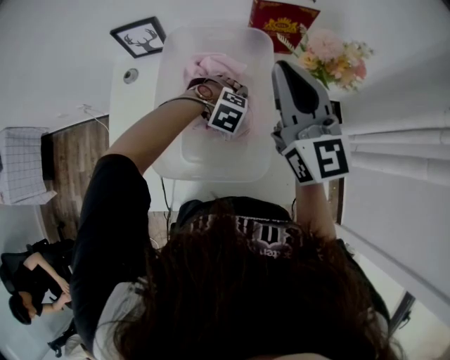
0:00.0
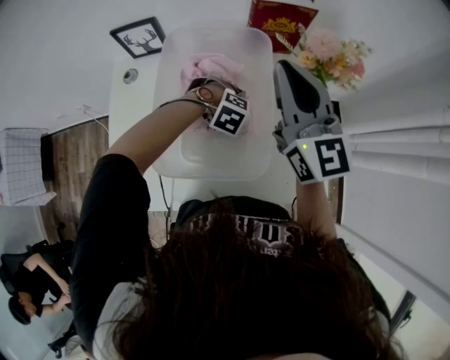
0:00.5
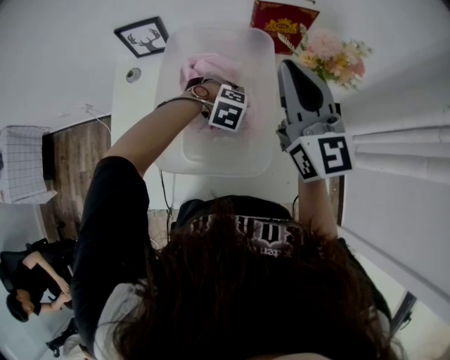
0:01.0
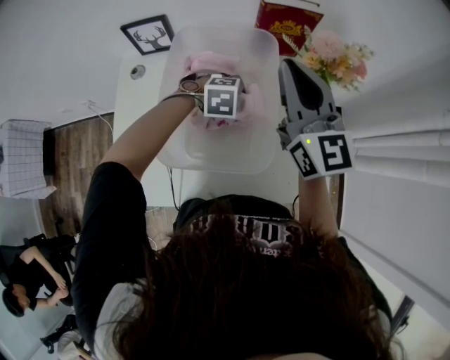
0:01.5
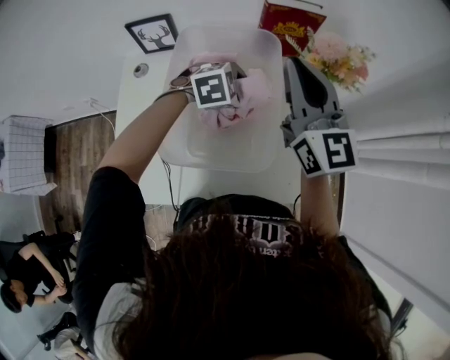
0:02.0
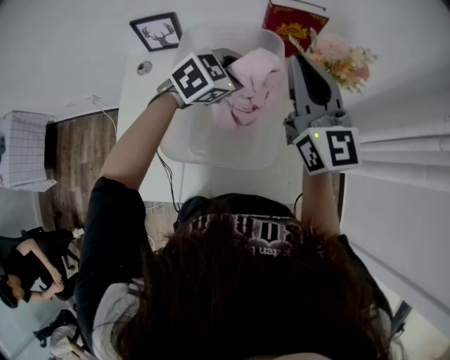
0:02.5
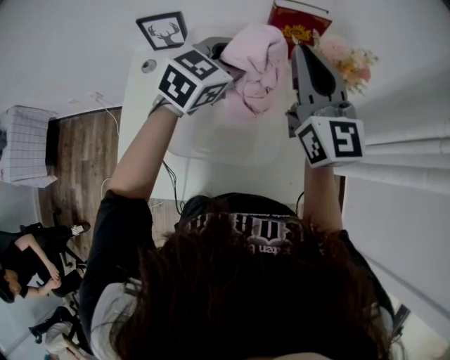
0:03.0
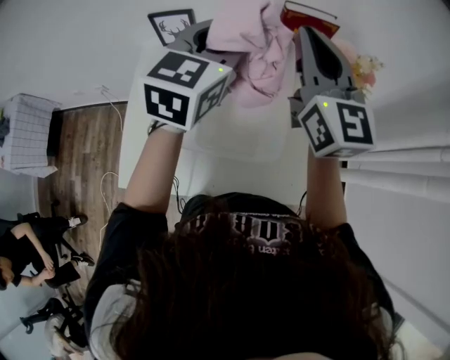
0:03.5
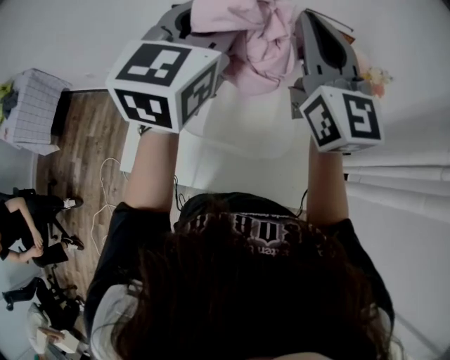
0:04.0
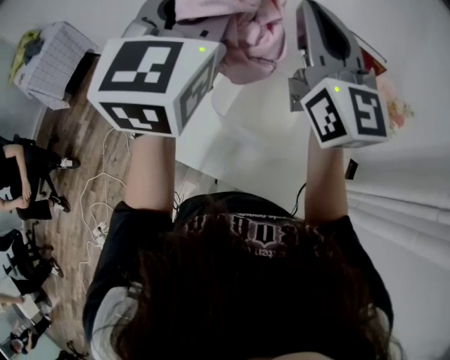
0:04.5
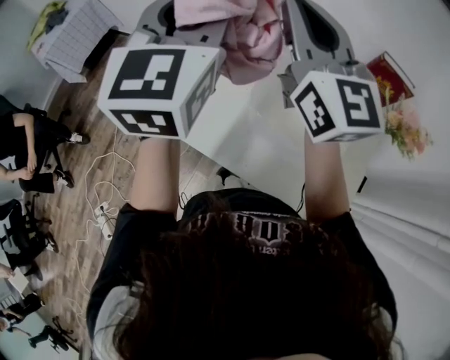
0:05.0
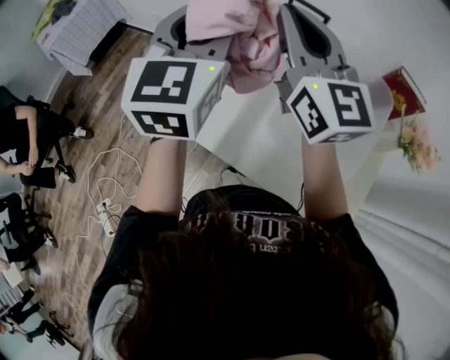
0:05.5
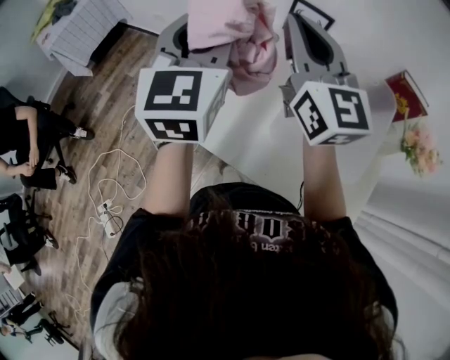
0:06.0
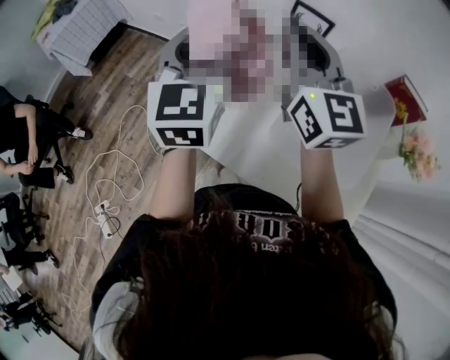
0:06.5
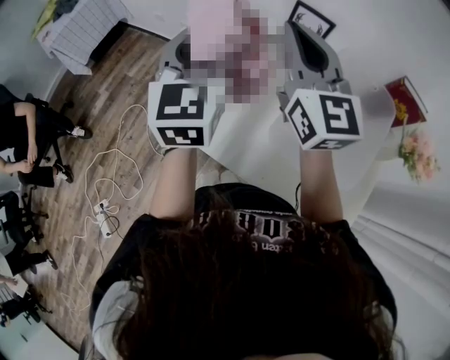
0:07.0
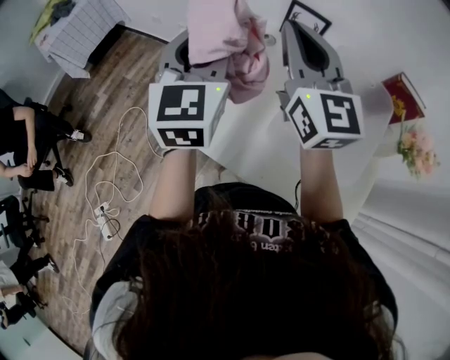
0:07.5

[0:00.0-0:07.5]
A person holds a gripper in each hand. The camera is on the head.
0:00.0 to 0:02.0: The left gripper goes about 10 cm upward, changes its angle by some 40 degrees, and closes.
0:02.0 to 0:04.0: The left gripper moves upward, some 35 cm, and tilts its fingers approximately 60 degrees upward; the right gripper heads upward, covering about 15 cm.
0:04.0 to 0:05.5: The right gripper shifts by roughly 30 cm, and turns by about 30 degrees, while the left gripper ends up roughly 25 cm from where it was, and changes its angle by about 30 degrees.
0:05.5 to 0:07.5: The left gripper shifts approximately 5 cm downward.

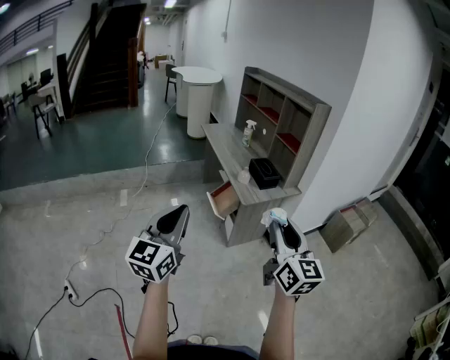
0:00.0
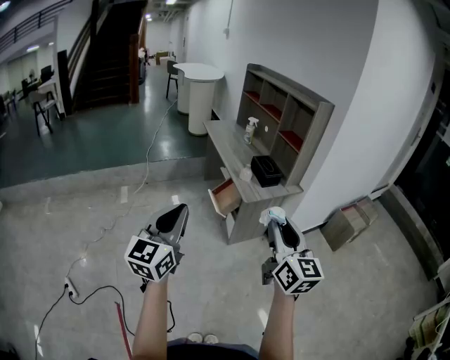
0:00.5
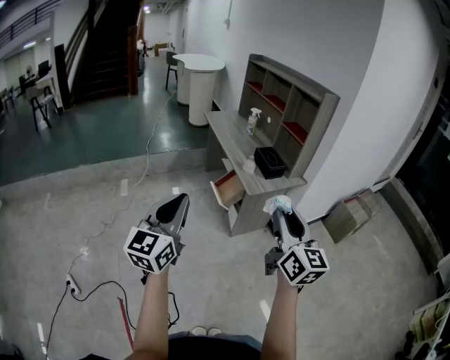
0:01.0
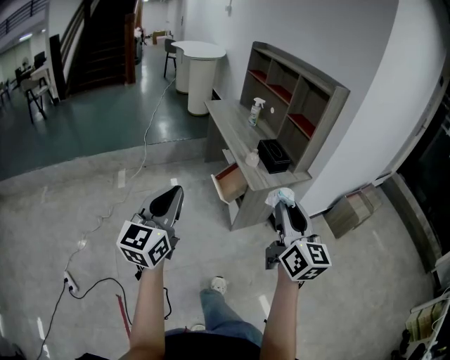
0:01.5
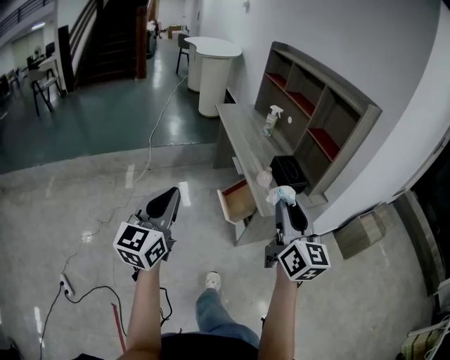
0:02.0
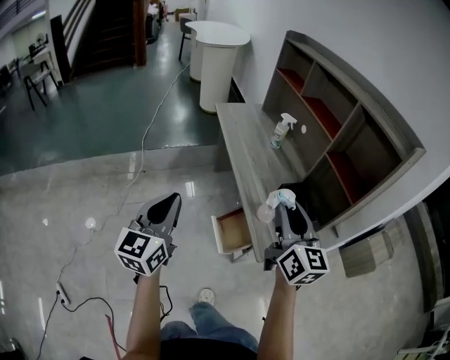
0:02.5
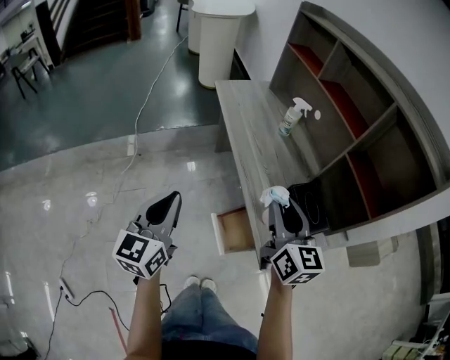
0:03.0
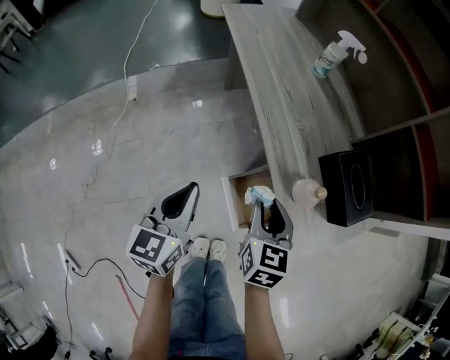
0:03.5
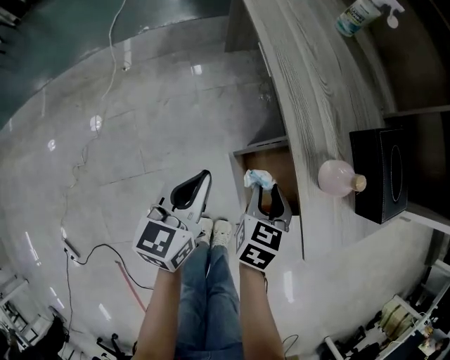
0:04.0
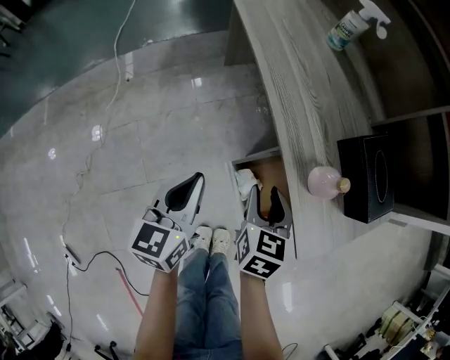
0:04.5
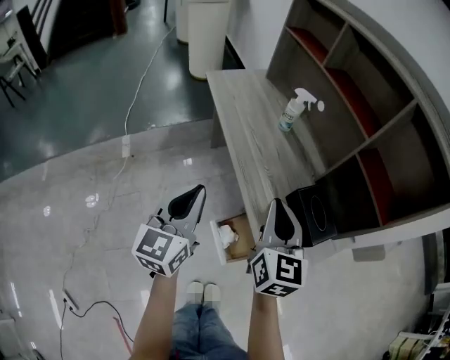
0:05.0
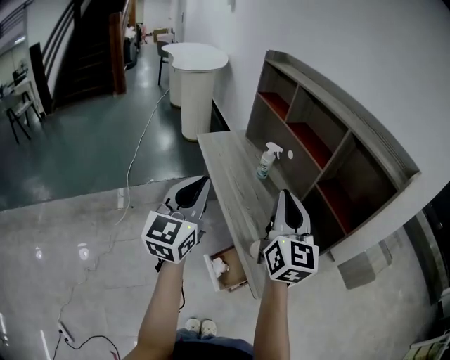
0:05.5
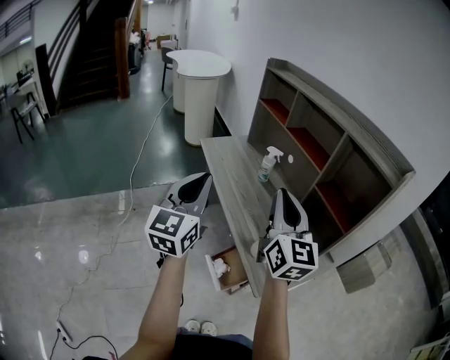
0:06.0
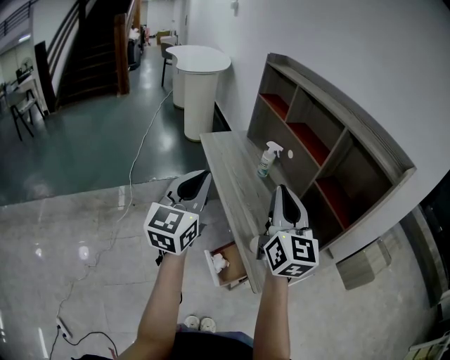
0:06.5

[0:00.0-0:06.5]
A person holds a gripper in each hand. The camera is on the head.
0:00.0 to 0:02.0: The left gripper is displaced forward and to the left by roughly 25 cm; the right gripper travels forward by roughly 25 cm.
0:02.0 to 0:04.5: The left gripper moves forward and downward, approximately 50 cm, and turns by some 30 degrees. The right gripper moves downward and forward, approximately 60 cm, and tips its fingers downward by some 50 degrees.
0:04.5 to 0:06.5: Both grippers move upward, roughly 50 cm. The left gripper turns by approximately 30 degrees; the right gripper points its fingers some 50 degrees further upward, and closes up.

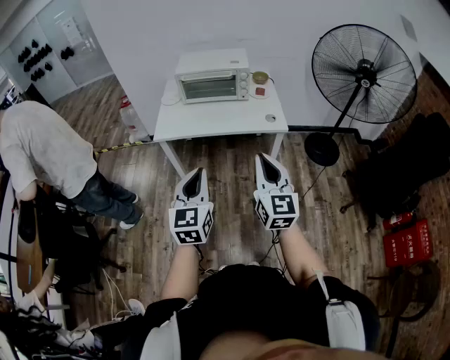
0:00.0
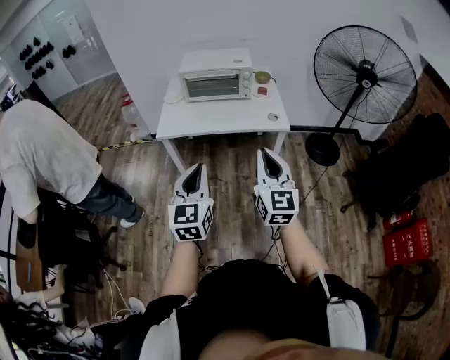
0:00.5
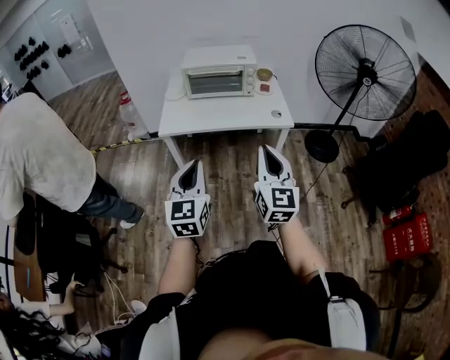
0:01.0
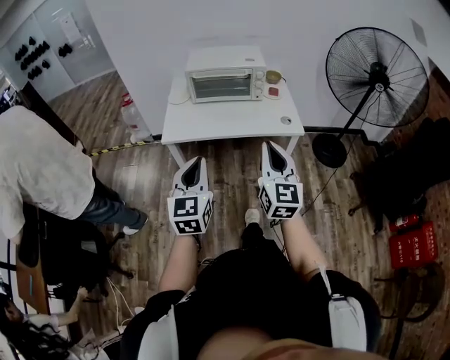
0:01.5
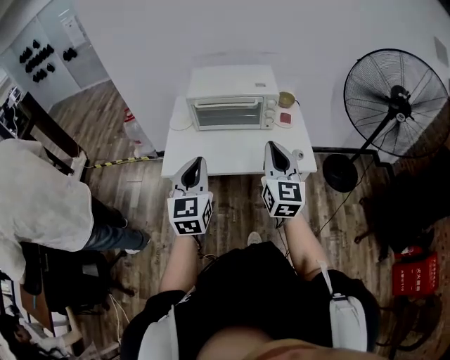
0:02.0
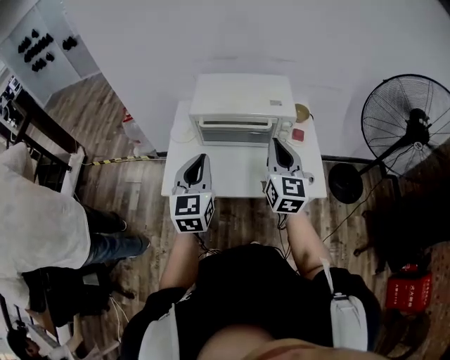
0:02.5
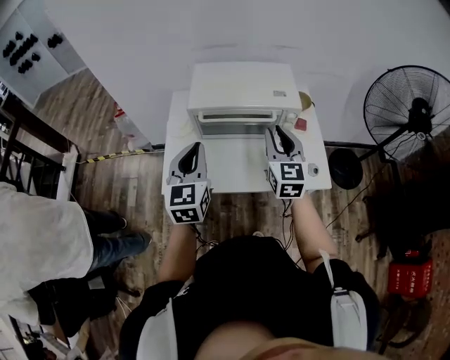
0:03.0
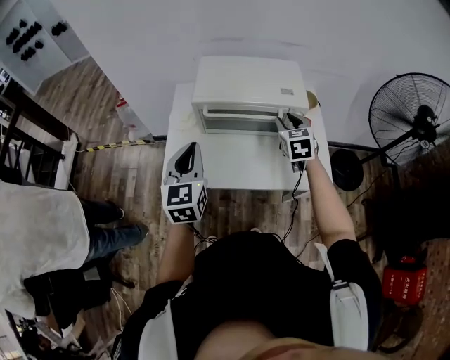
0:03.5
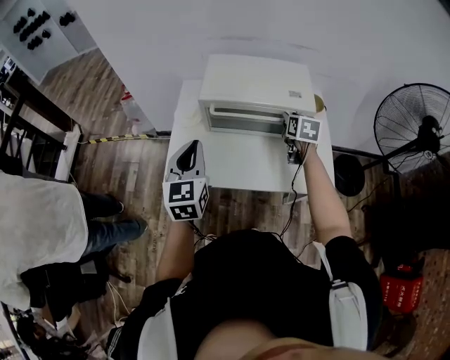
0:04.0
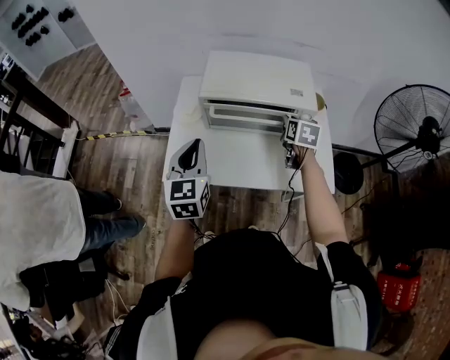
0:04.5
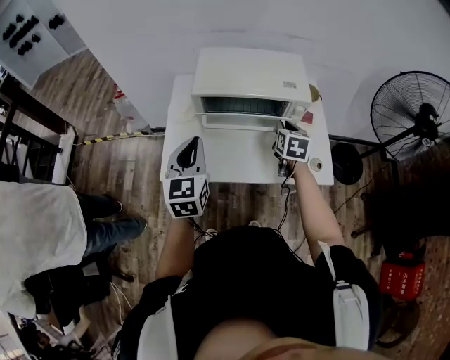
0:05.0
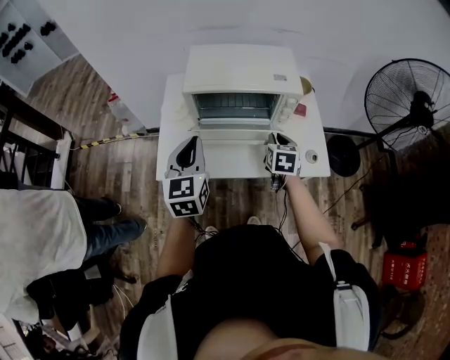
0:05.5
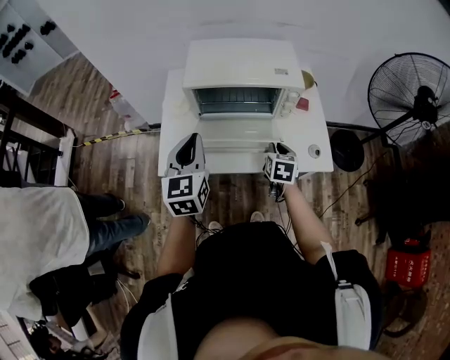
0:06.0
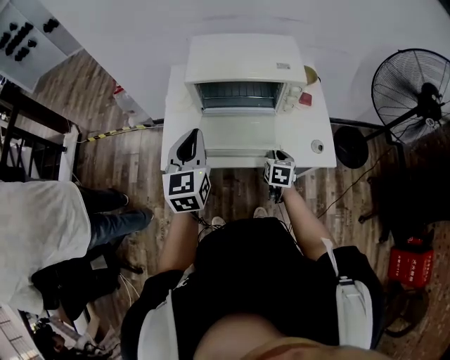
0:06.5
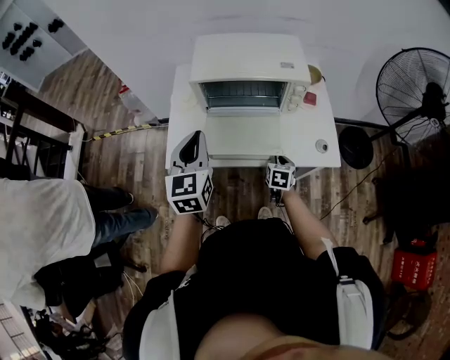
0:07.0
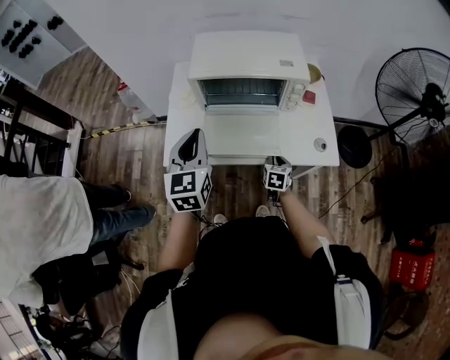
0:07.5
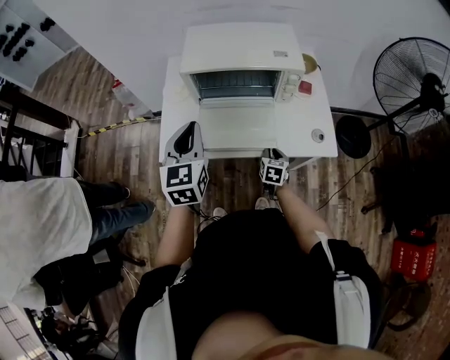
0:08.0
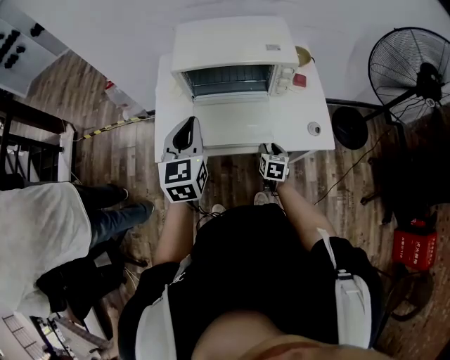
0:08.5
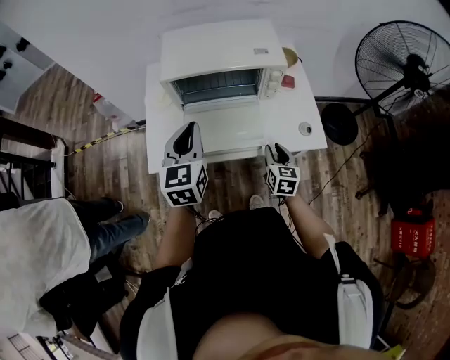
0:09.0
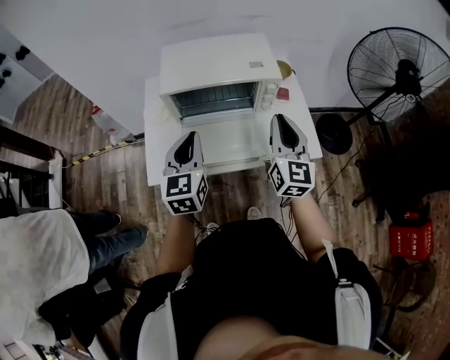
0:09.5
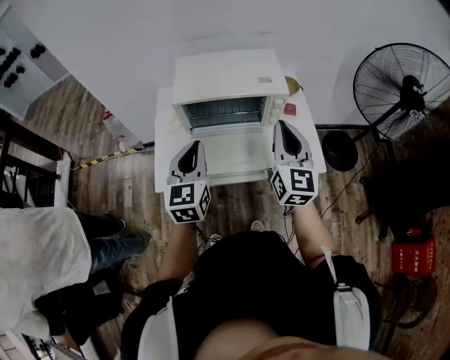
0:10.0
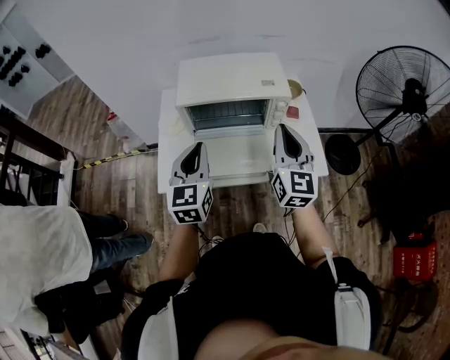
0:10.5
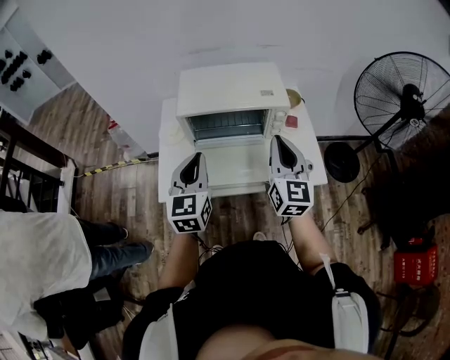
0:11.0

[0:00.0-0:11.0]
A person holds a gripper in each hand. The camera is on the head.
0:00.0 to 0:02.0: The two grippers go approximately 30 cm forward.
0:02.0 to 0:03.5: The left gripper moves forward, some 20 cm. The right gripper is displaced forward and downward by some 35 cm, angles its fingers downward, by approximately 30 degrees, and opens its fingers.
0:03.5 to 0:05.5: The right gripper moves downward and backward, some 10 cm, and swivels some 20 degrees.
0:05.5 to 0:07.5: The right gripper moves downward and backward, roughly 20 cm.
0:07.5 to 0:09.0: The left gripper changes place by about 5 cm. Meanwhile the right gripper goes approximately 10 cm upward.
0:09.0 to 0:11.0: The right gripper heads upward, covering about 25 cm, points its fingers about 30 degrees further upward, and closes.

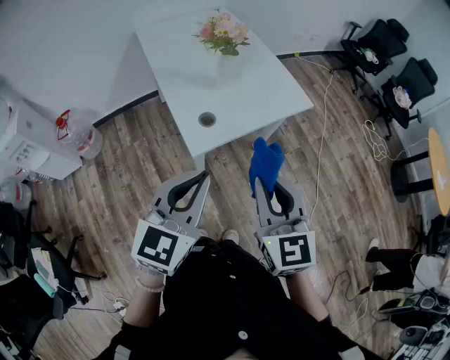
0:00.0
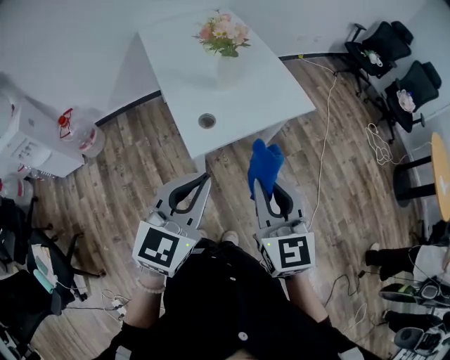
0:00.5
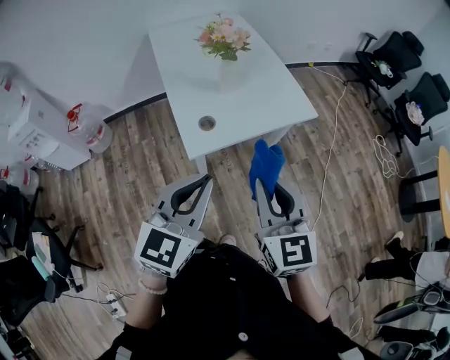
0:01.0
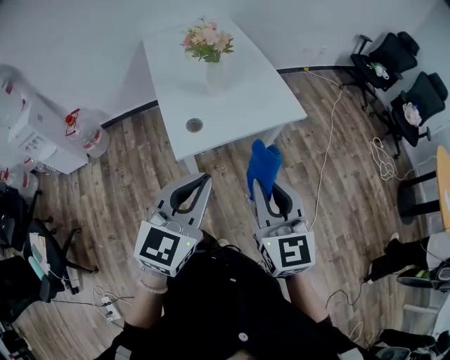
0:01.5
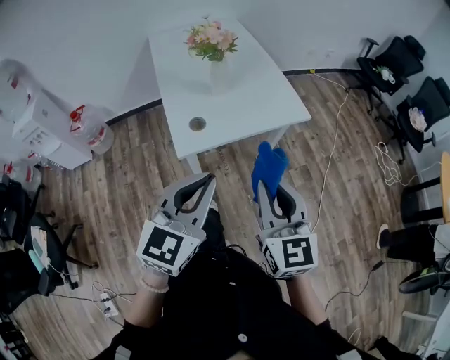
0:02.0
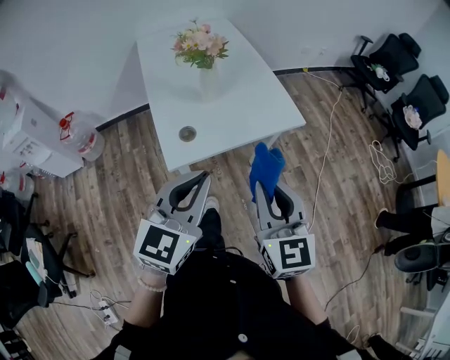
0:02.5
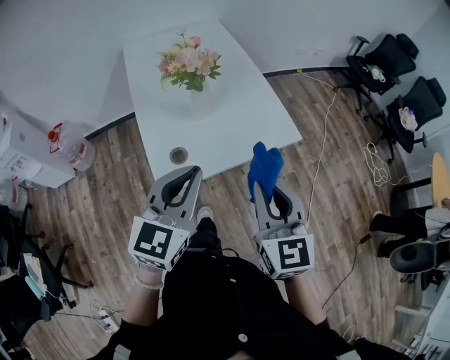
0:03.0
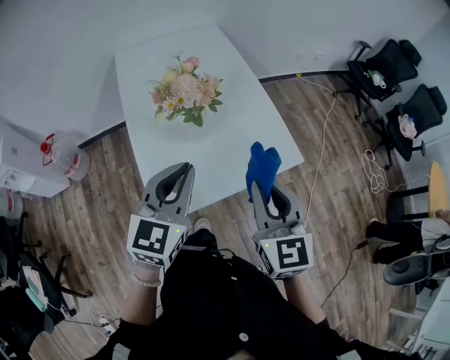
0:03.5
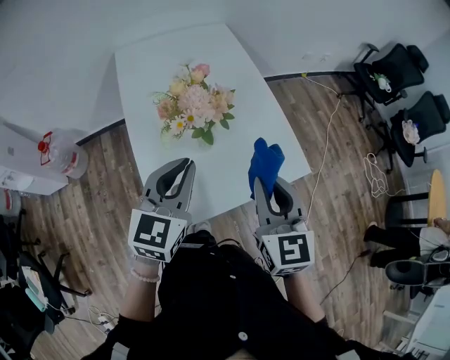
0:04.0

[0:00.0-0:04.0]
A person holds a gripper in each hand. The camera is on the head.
0:00.0 to 0:02.0: The two grippers go some 10 cm to the right.
0:02.0 to 0:04.0: The two grippers go approximately 35 cm forward.
